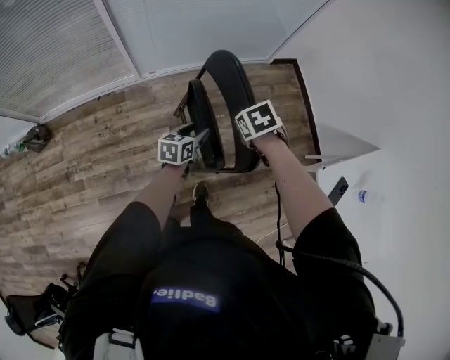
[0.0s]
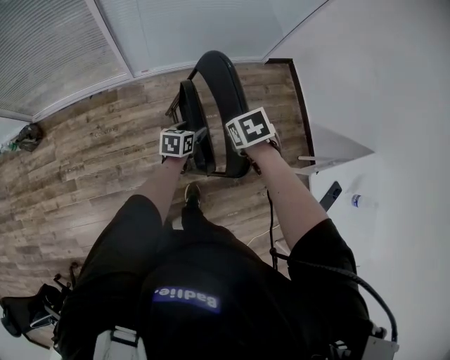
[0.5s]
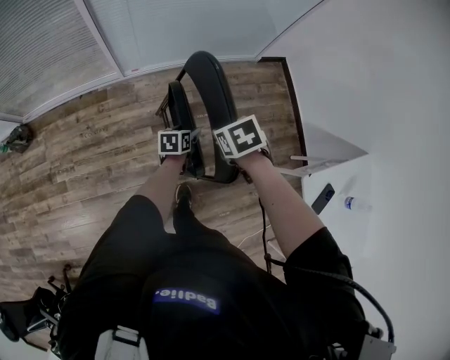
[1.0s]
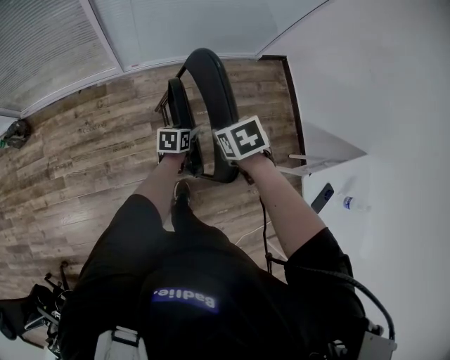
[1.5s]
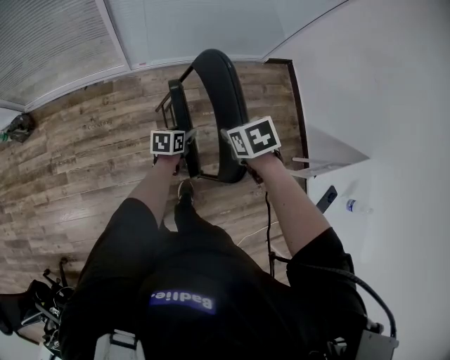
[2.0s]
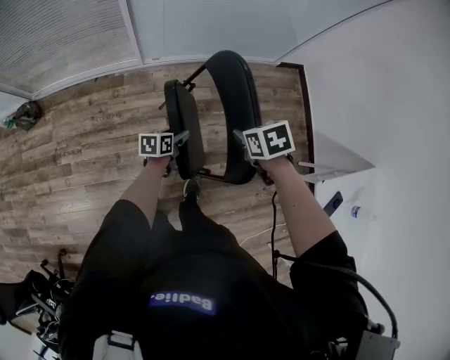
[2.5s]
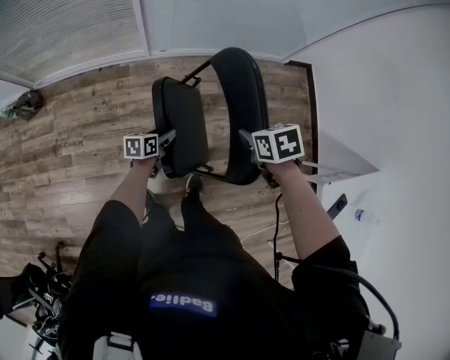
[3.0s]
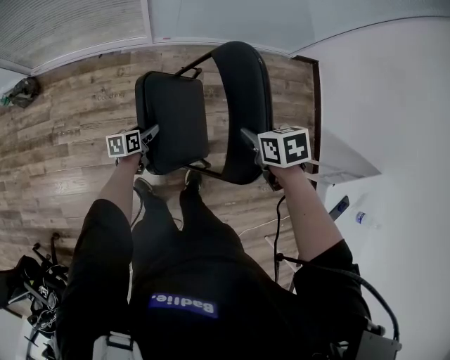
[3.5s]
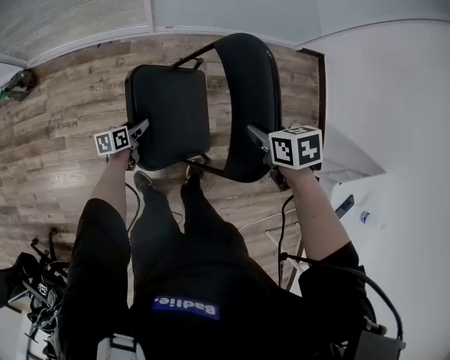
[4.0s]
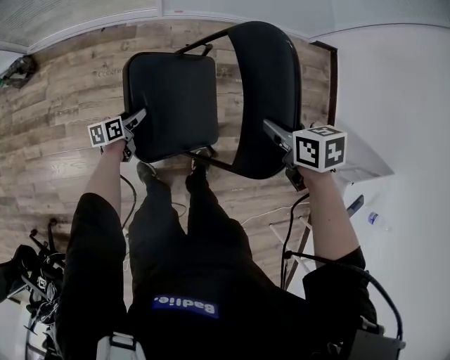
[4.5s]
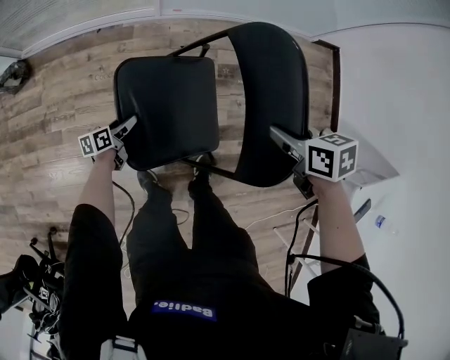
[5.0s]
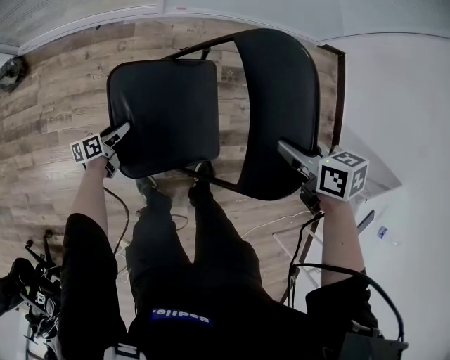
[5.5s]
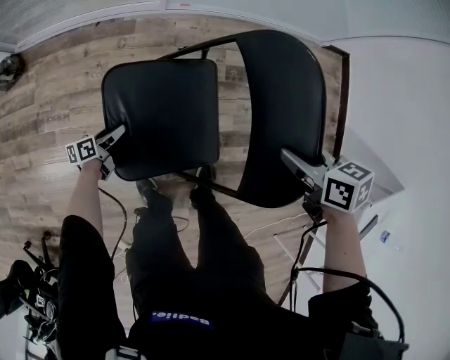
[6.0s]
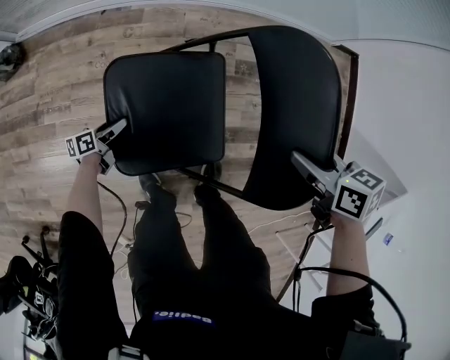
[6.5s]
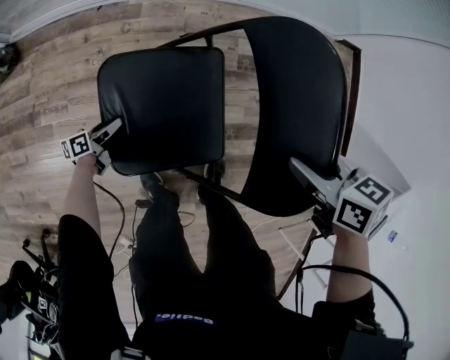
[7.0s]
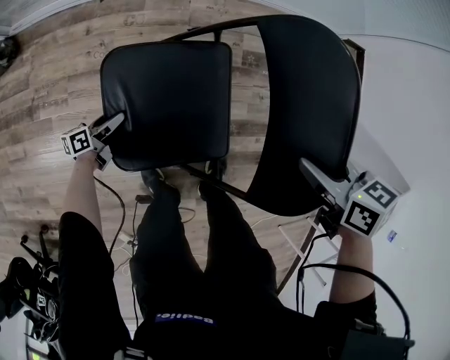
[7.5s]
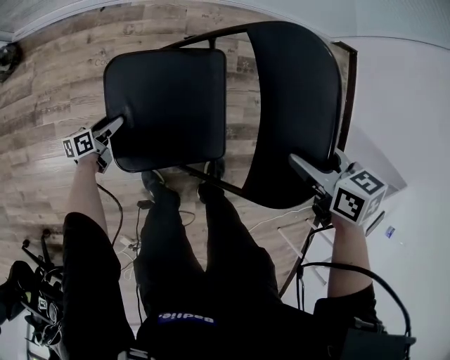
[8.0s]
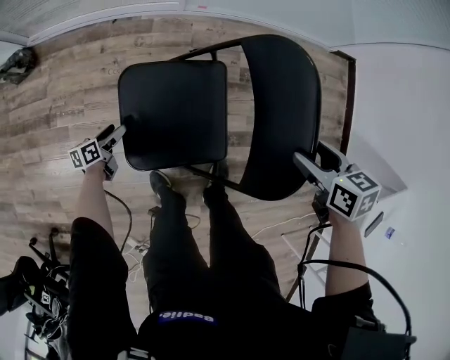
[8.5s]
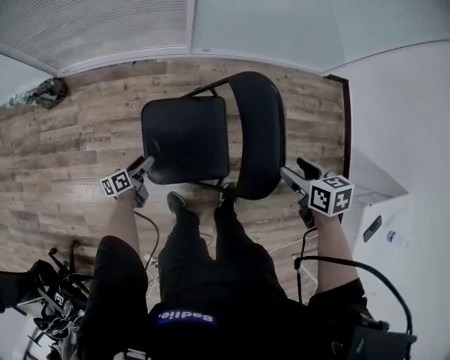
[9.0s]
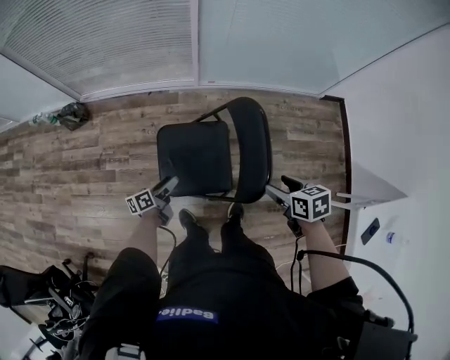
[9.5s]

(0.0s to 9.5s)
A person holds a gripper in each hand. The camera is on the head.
0.0s - 2.0s: The left gripper shifts some 10 cm downward.
2.0s - 4.0s: The left gripper goes approximately 30 cm to the left and downward. The right gripper moves downward and to the left, roughly 10 cm.
4.0s - 5.5s: The right gripper is displaced downward by some 5 cm. Meanwhile the left gripper moves downward and to the left, about 15 cm.
5.5s - 7.5s: The left gripper heads downward and to the left, covering approximately 10 cm; the right gripper goes approximately 10 cm to the left.
7.5s - 9.5s: The right gripper travels upward and backward by about 15 cm, and opens up, while the left gripper moves upward, approximately 35 cm.

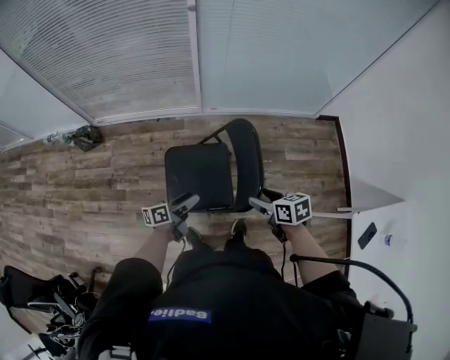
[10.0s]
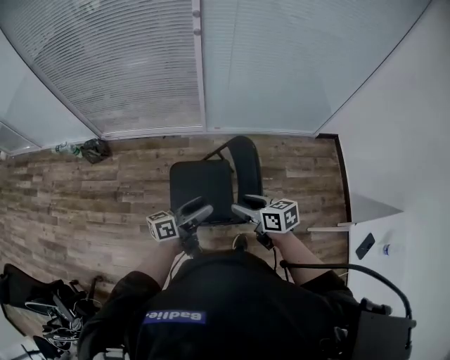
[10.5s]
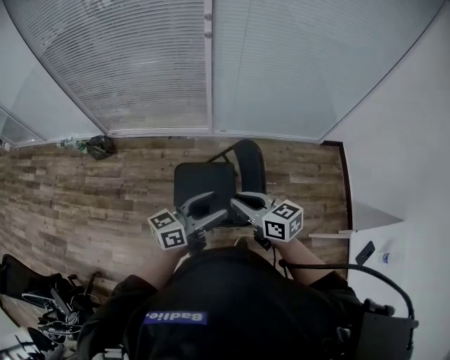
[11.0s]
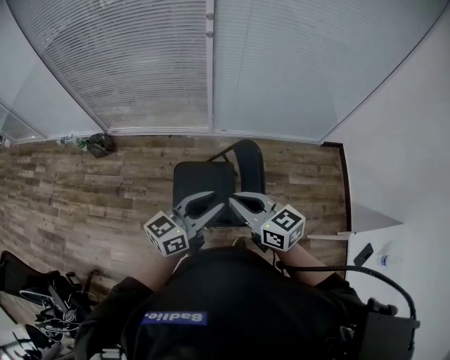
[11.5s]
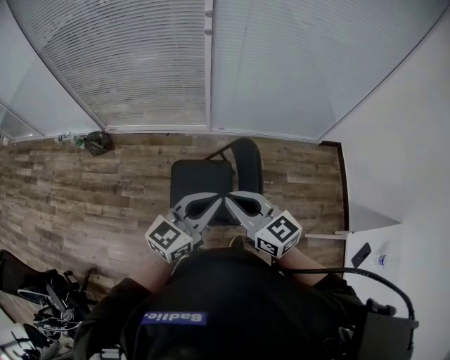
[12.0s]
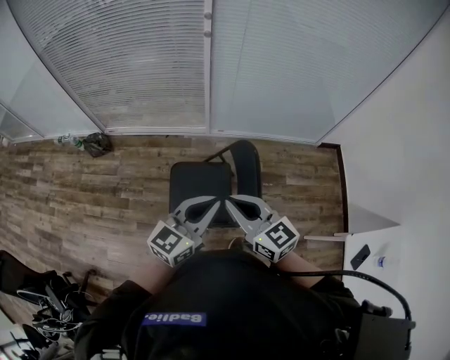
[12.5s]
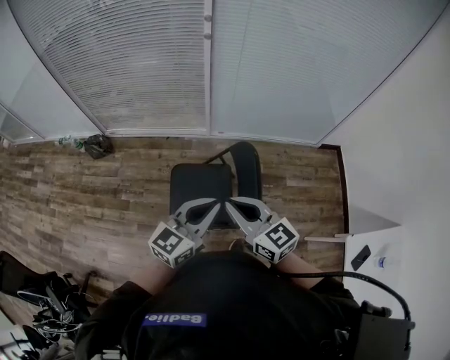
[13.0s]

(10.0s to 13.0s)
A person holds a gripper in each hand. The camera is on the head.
10.0s - 11.5s: The left gripper travels upward by about 30 cm, swivels roughly 40 degrees, and closes. Meanwhile the right gripper shifts approximately 20 cm upward and to the left, turns by roughly 40 degrees, and closes up.
11.5s - 13.0s: The left gripper closes up.

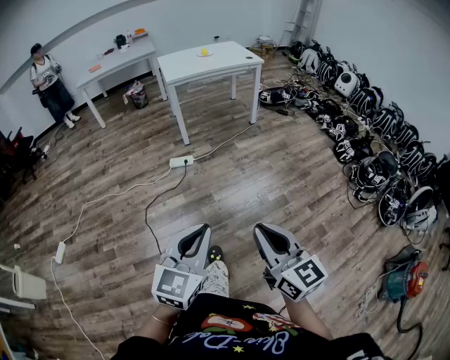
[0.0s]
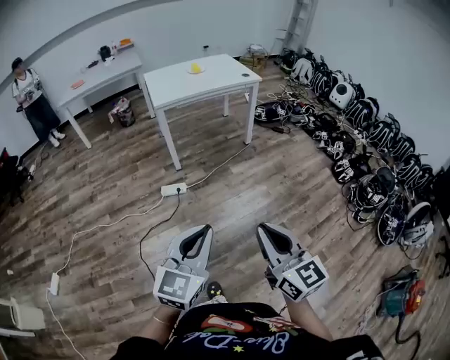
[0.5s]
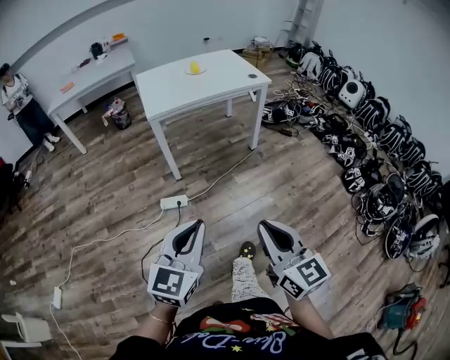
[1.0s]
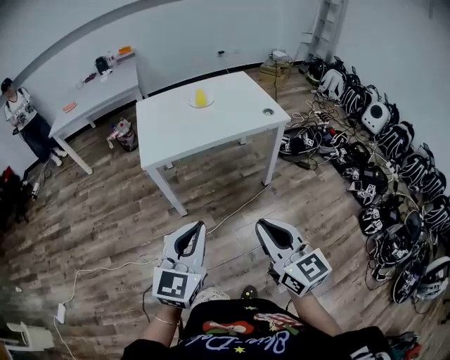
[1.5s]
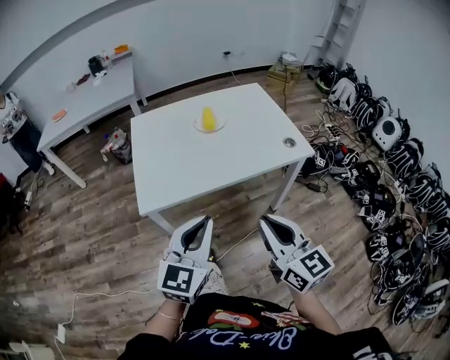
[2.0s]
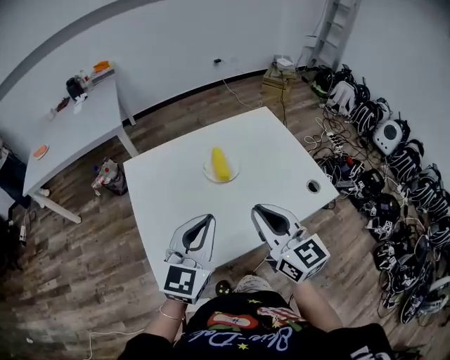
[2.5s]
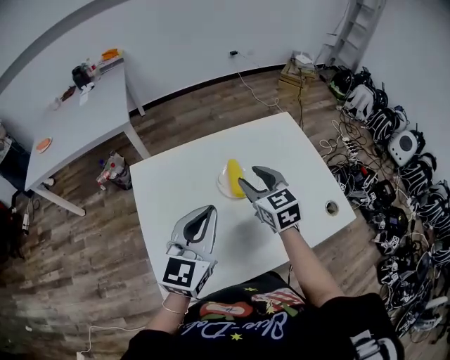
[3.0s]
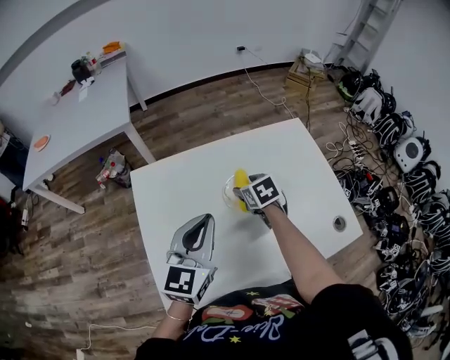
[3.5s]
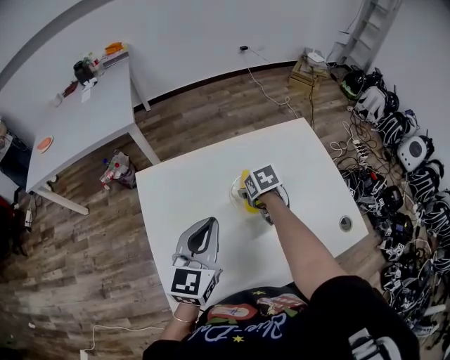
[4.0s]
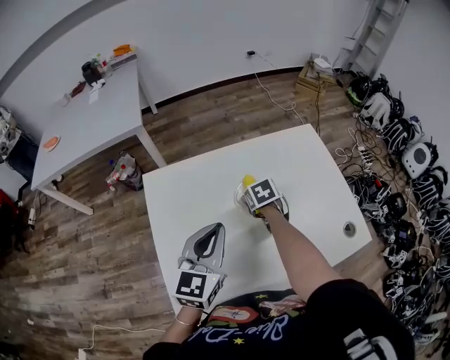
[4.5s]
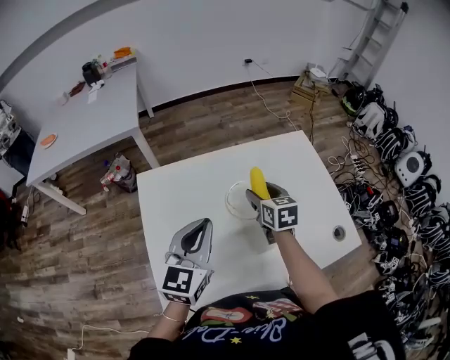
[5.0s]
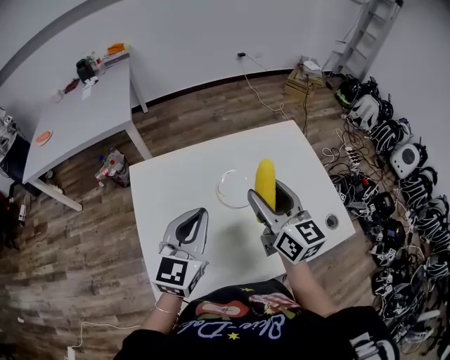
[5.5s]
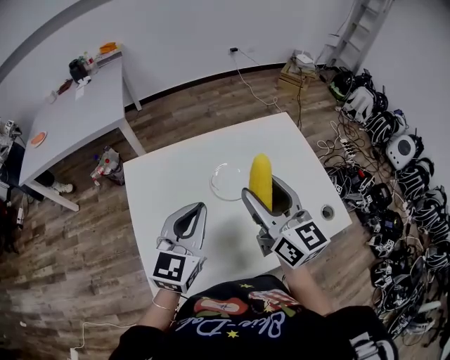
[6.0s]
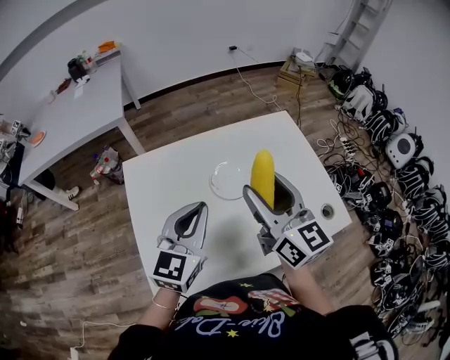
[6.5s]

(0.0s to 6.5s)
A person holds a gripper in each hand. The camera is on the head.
0.0s - 2.0s: Both grippers are carried forward, some 1 m.
2.0s - 4.5s: The two grippers travel together, forward, some 60 cm. The right gripper points its fingers some 60 degrees further downward, and opens its fingers.
4.5s - 6.5s: The right gripper goes about 35 cm upward and backward, and tips its fingers upward by approximately 70 degrees; the left gripper shifts by approximately 5 cm.

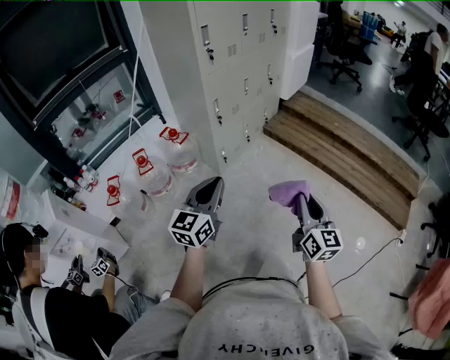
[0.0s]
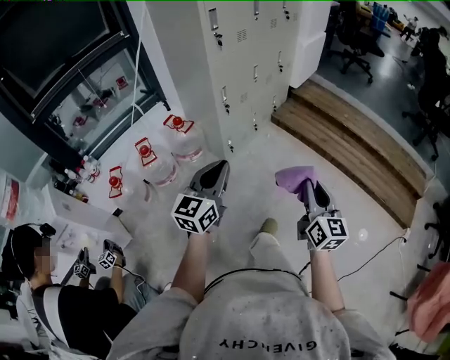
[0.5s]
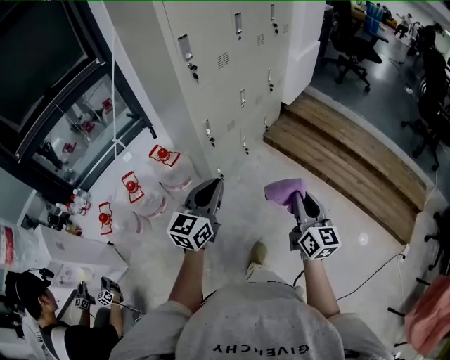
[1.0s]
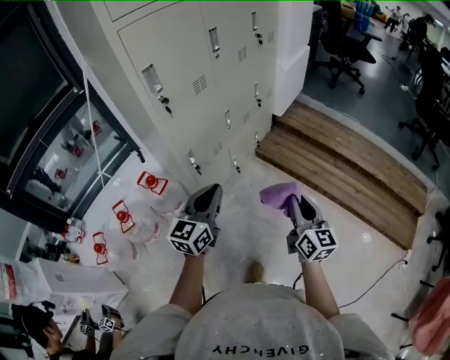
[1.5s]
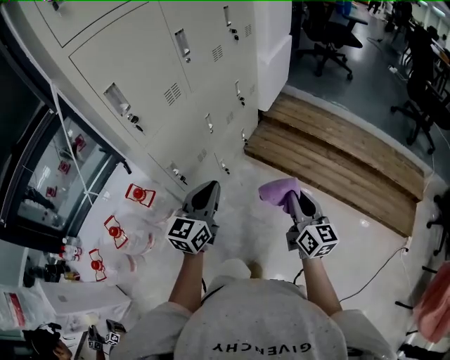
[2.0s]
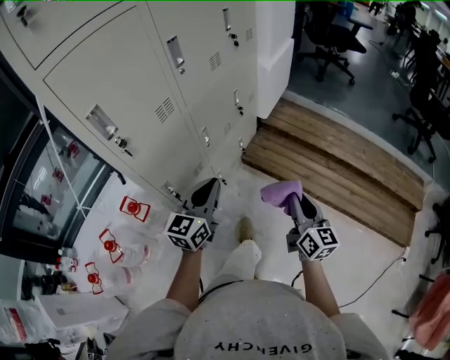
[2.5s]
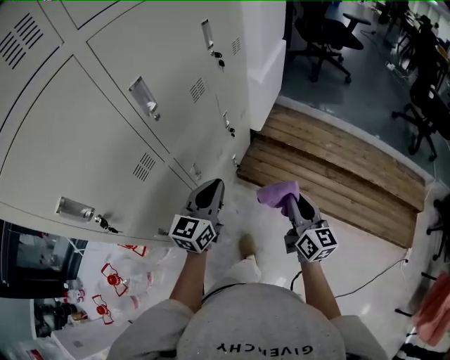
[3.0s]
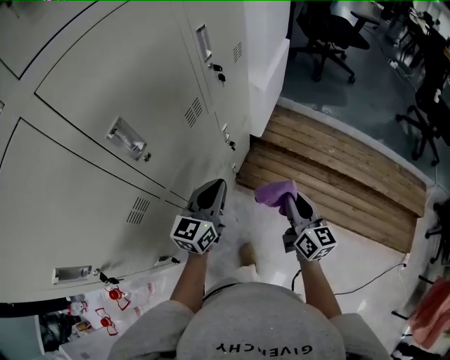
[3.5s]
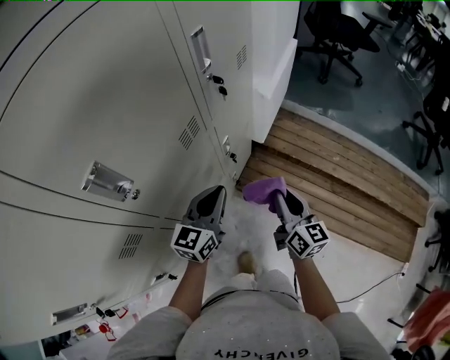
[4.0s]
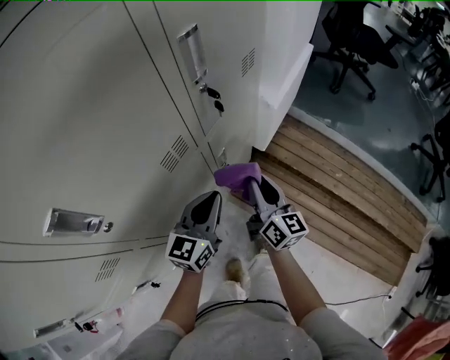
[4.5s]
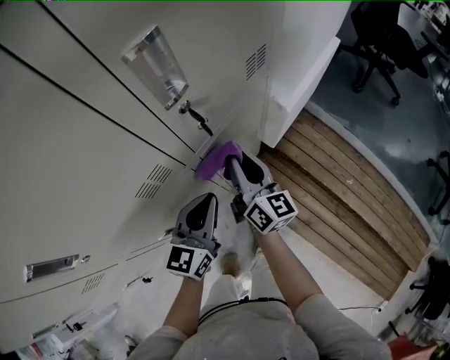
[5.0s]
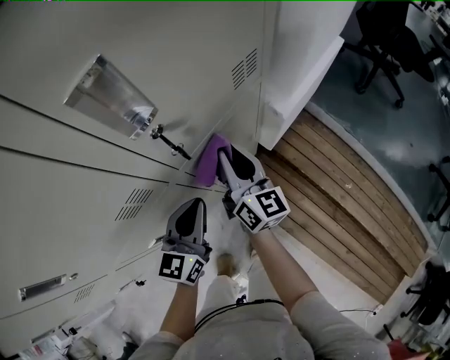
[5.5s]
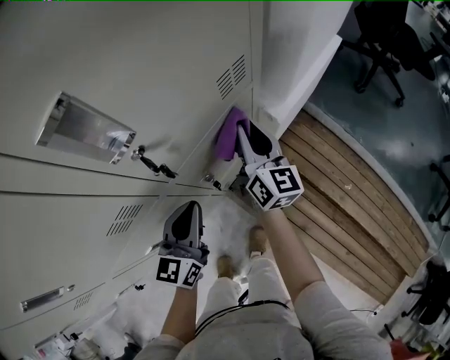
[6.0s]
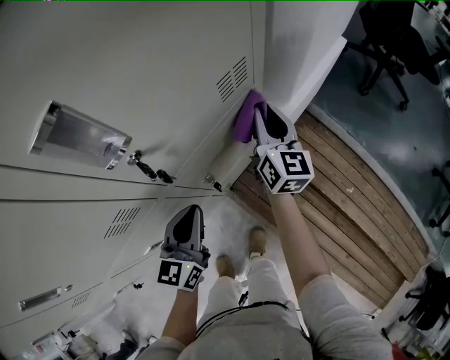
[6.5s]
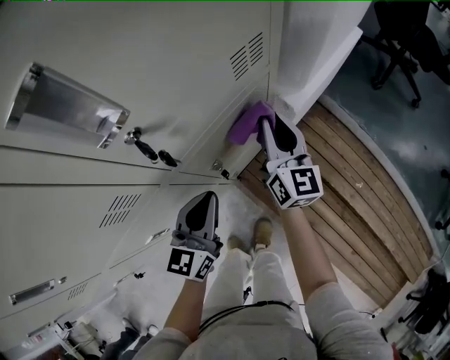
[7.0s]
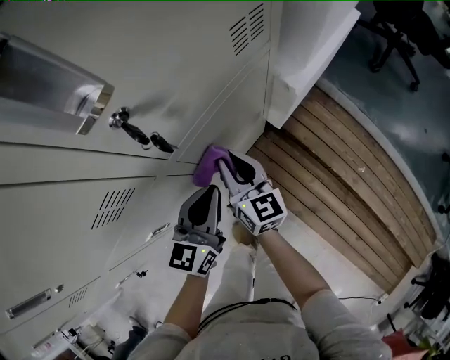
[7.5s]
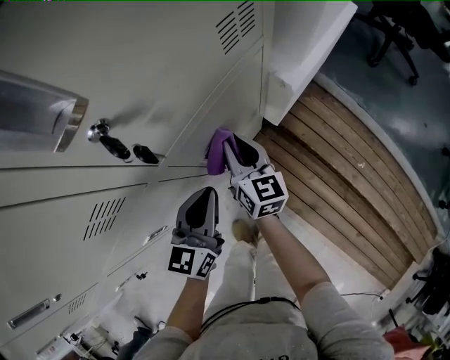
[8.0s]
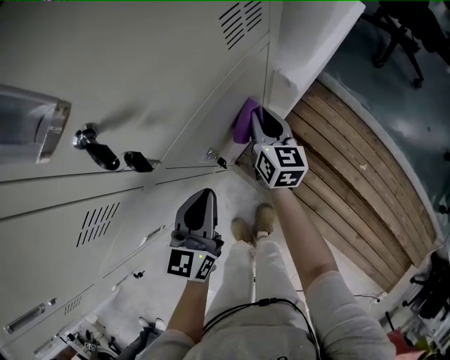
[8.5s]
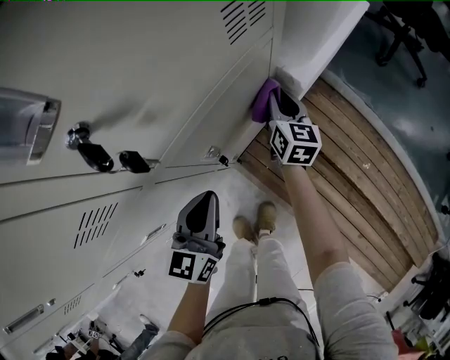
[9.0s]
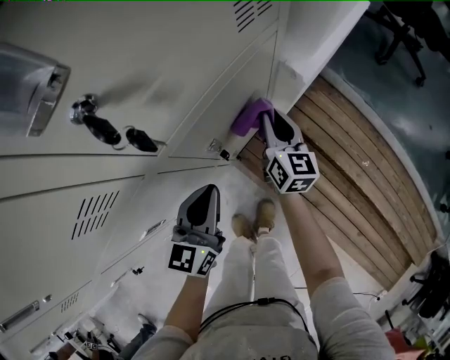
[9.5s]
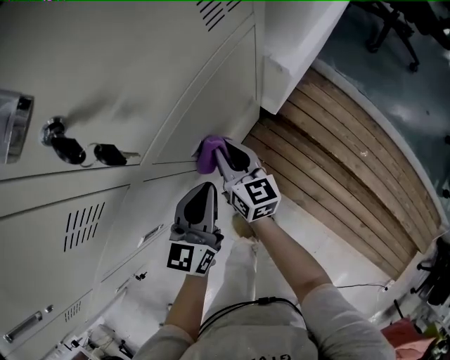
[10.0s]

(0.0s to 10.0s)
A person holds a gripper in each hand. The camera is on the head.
0.0s - 2.0s: Both grippers are carried forward, roughly 50 cm.
2.0s - 4.0s: The two grippers travel together, forward, approximately 50 cm.
4.0s - 6.0s: The right gripper goes roughly 35 cm forward; the left gripper goes some 15 cm forward, and swivels approximately 20 degrees.
6.0s - 8.0s: The right gripper moves forward and backward over approximately 15 cm, changing direction 2 times, while the left gripper moves downward, some 5 cm.
8.0s - 10.0s: The right gripper travels downward by some 5 cm, and reaches approximately 10 cm forward, then returns.
